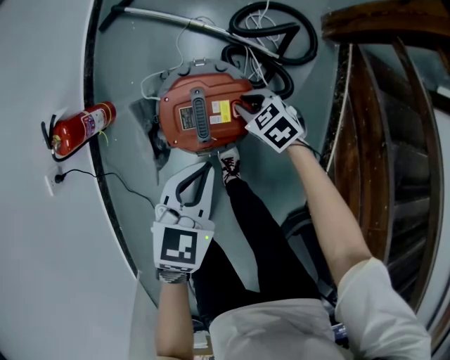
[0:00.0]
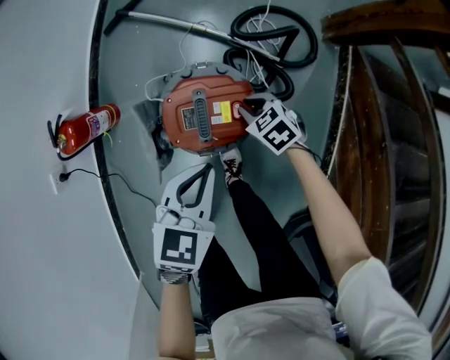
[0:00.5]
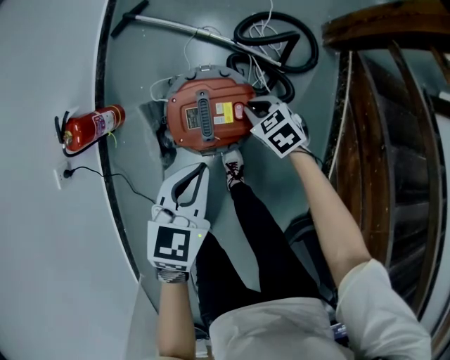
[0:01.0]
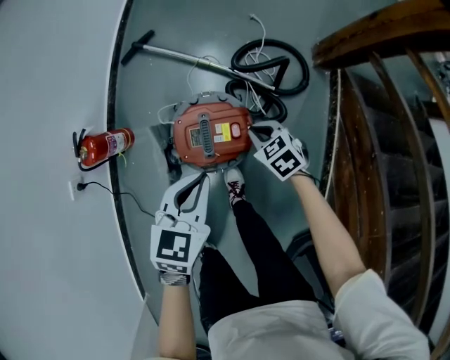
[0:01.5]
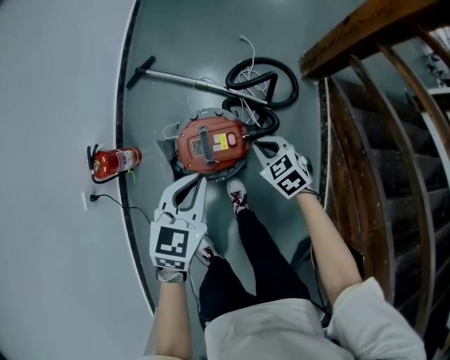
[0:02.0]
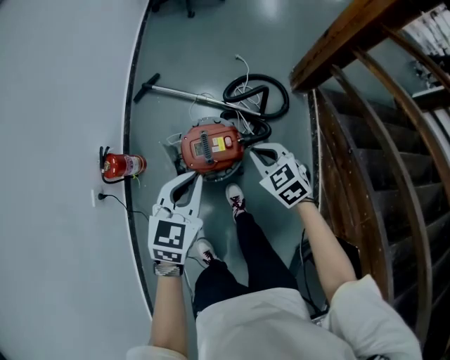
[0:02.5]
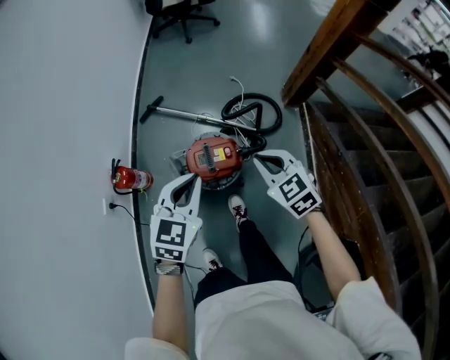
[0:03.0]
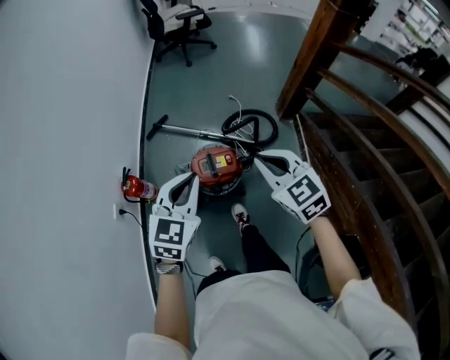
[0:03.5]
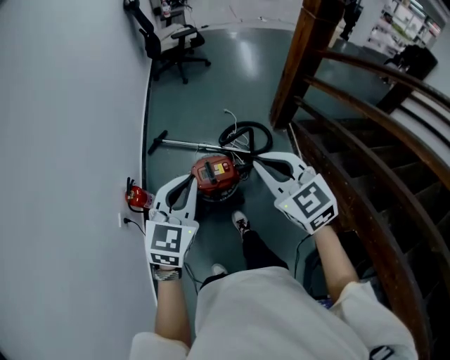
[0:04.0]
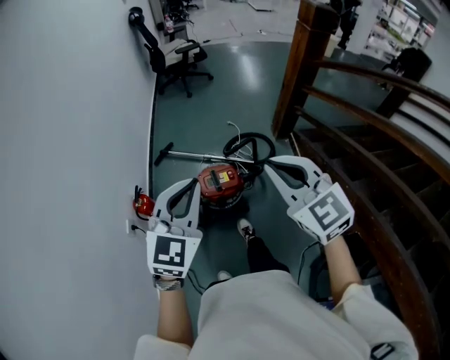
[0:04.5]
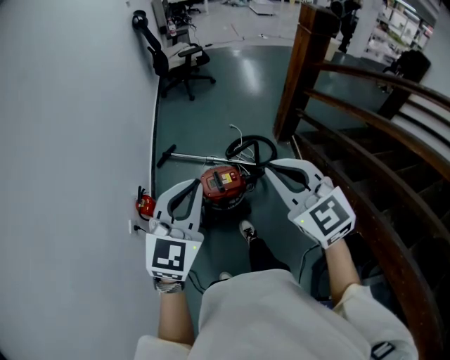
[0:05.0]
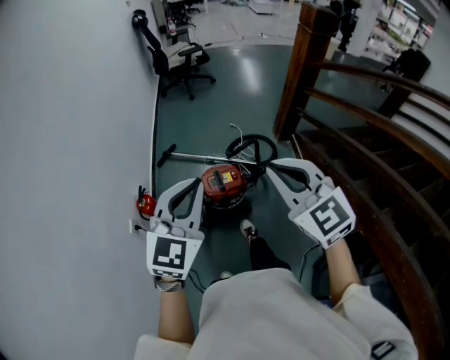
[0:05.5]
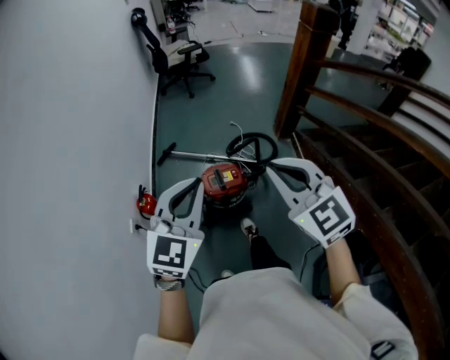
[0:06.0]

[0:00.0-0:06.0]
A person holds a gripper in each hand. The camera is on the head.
0:00.0 to 0:02.0: The two grippers go roughly 15 cm upward.
0:02.0 to 0:04.0: Both grippers travel together upward and backward, roughly 40 cm. The left gripper changes its angle by roughly 30 degrees; the right gripper tilts its fingers some 40 degrees upward.
0:04.0 to 0:06.0: The two grippers go some 10 cm upward and backward.

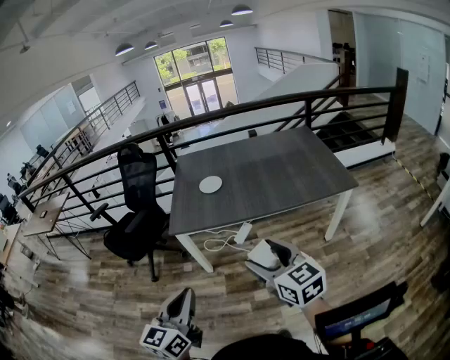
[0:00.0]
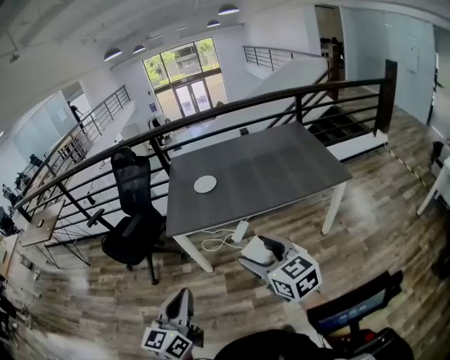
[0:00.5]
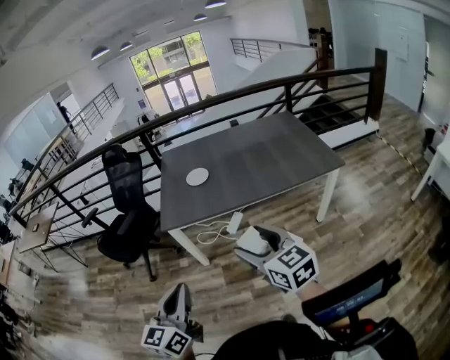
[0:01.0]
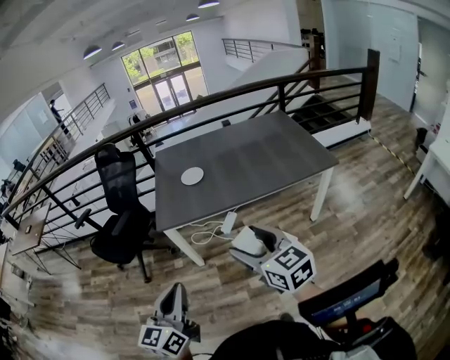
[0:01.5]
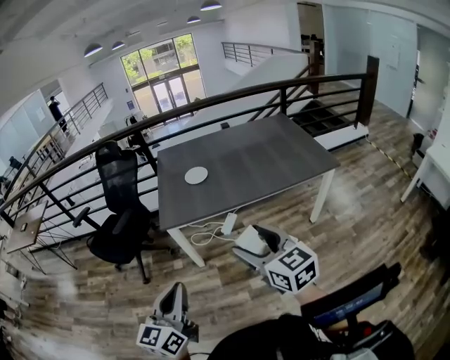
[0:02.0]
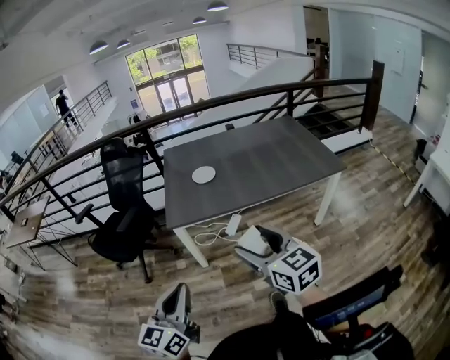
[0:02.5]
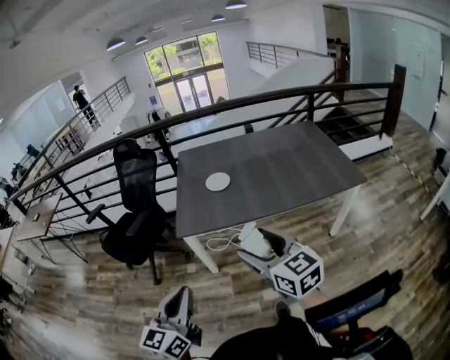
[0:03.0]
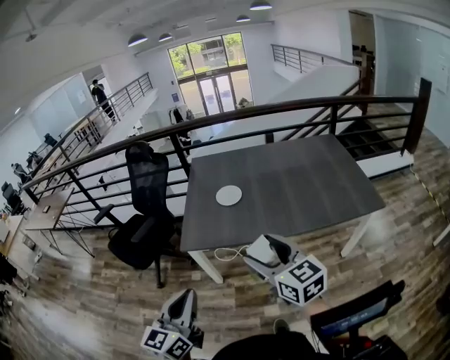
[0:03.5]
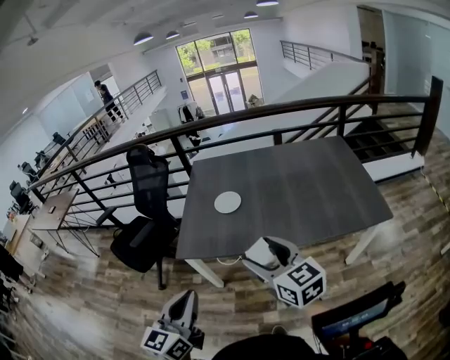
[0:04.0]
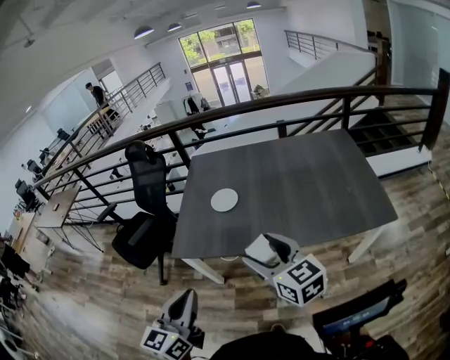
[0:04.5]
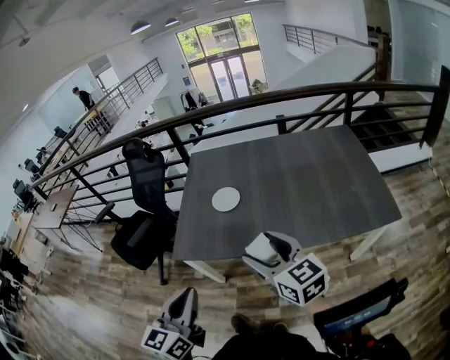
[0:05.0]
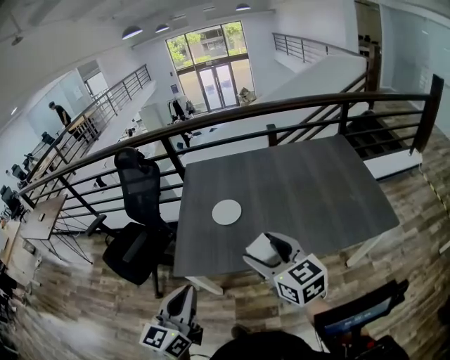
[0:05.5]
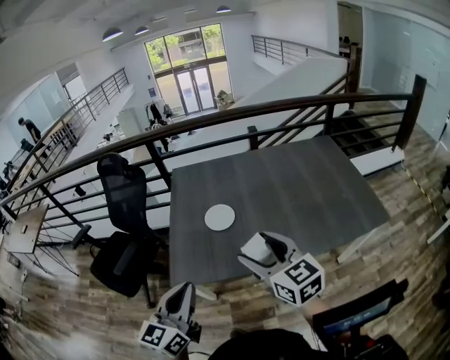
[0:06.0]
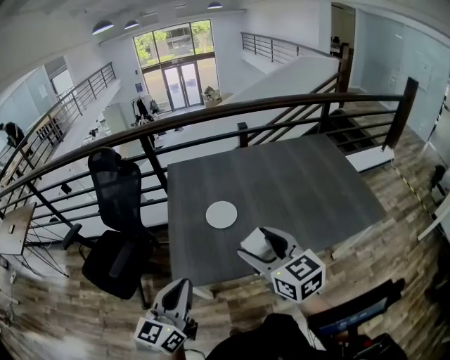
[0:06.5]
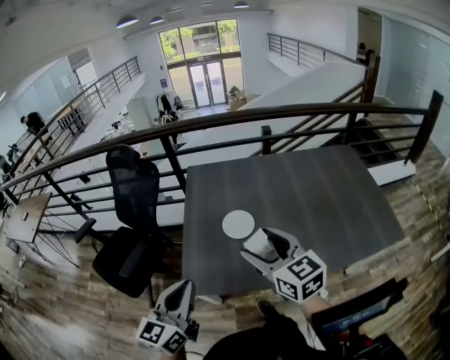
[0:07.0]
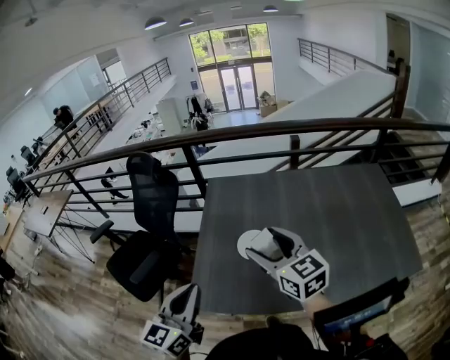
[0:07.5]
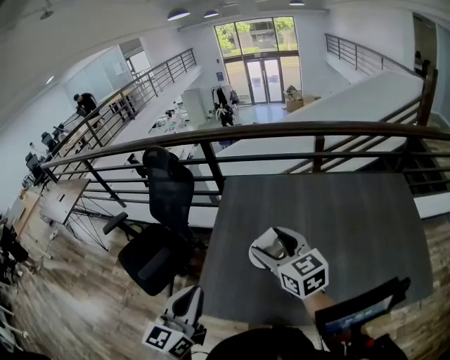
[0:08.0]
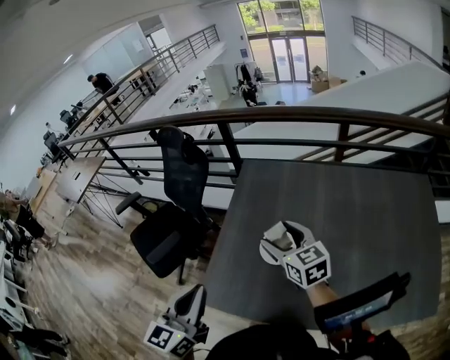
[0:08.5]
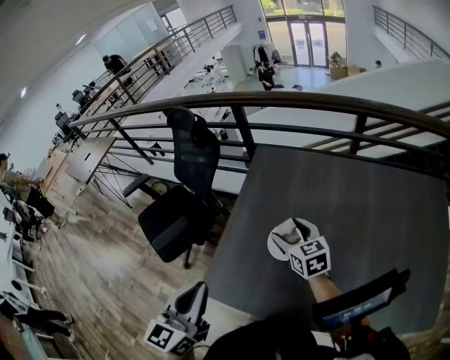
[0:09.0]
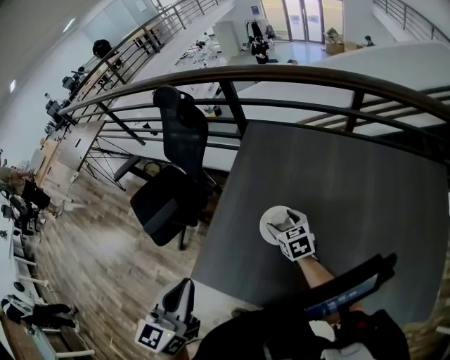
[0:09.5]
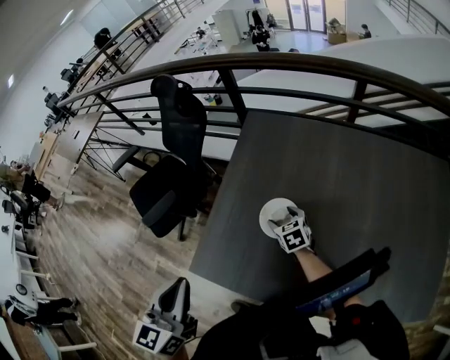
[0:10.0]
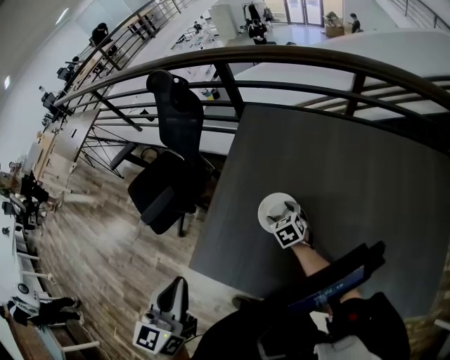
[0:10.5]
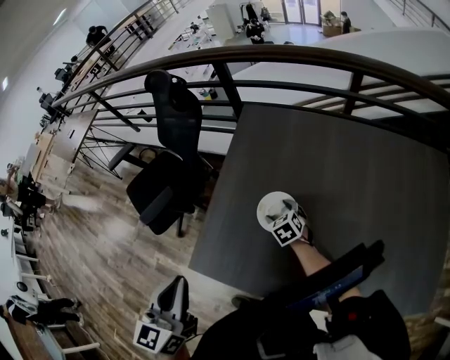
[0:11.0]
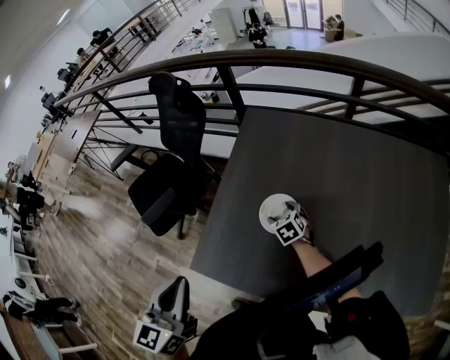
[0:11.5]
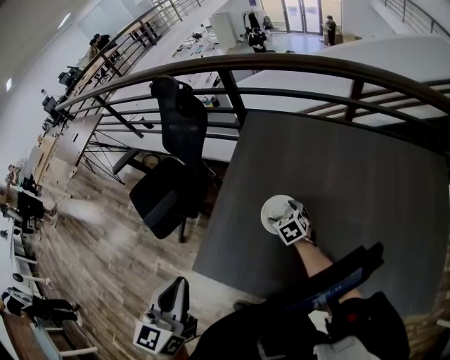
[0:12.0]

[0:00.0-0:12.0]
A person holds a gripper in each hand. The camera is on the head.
0:00.0 to 0:02.0: The grippers both shift to the left by roughly 10 cm.
0:02.0 to 0:04.0: The right gripper is displaced forward by some 25 cm, while the left gripper is displaced forward and to the right by roughly 25 cm.
0:04.0 to 0:06.0: Both grippers move forward, about 20 cm.
0:06.0 to 0:08.0: The left gripper is displaced forward by roughly 15 cm; the right gripper travels forward by about 25 cm.
0:08.0 to 0:10.0: The right gripper heads downward, covering some 30 cm, and tilts its fingers about 30 degrees downward.
0:10.0 to 0:12.0: There are only small adjustments of the grippers.

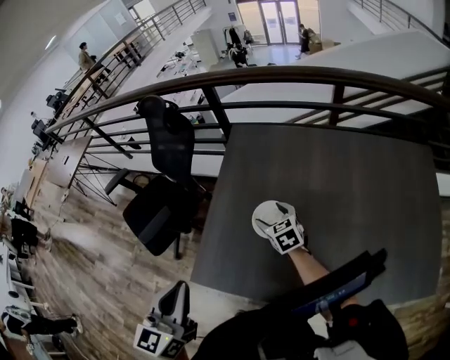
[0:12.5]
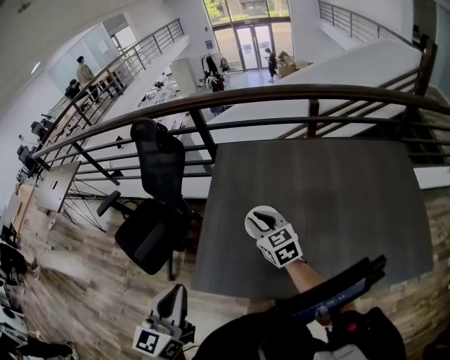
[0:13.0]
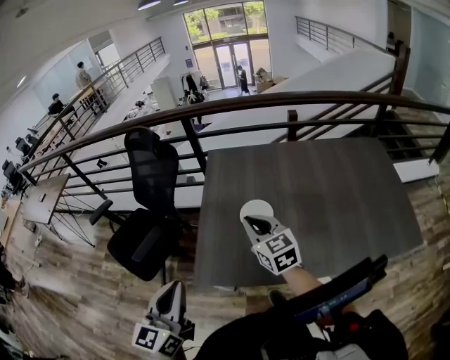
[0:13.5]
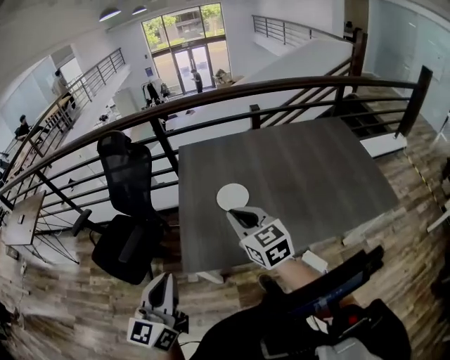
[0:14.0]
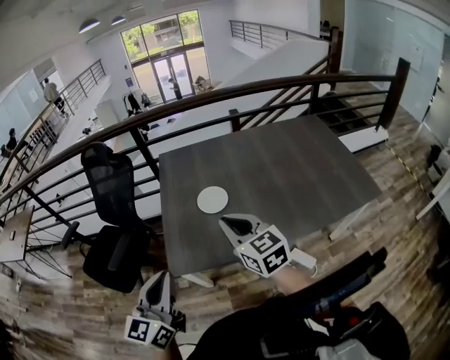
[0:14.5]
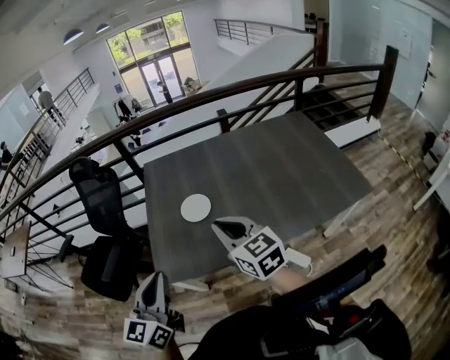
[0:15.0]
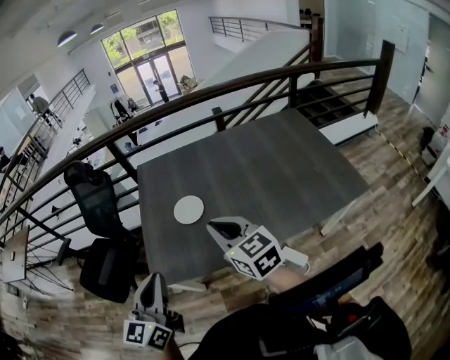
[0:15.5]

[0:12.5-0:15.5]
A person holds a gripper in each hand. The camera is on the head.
0:12.5 to 0:14.0: The left gripper goes some 20 cm backward and to the left, and rotates about 20 degrees; the right gripper moves backward and upward, about 30 cm, swivels about 30 degrees, and closes.
0:14.0 to 0:15.5: The grippers both shift to the right by roughly 15 cm.

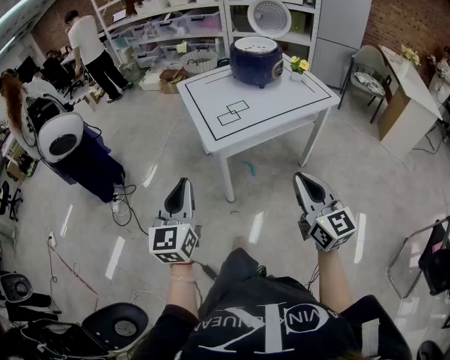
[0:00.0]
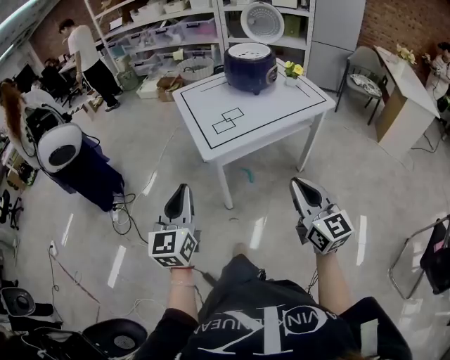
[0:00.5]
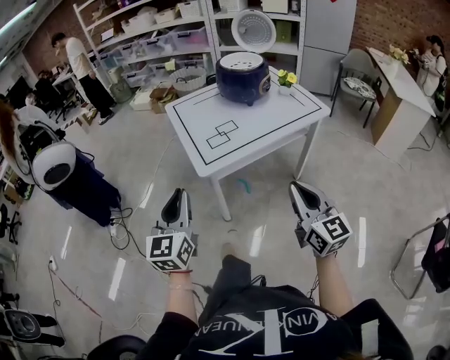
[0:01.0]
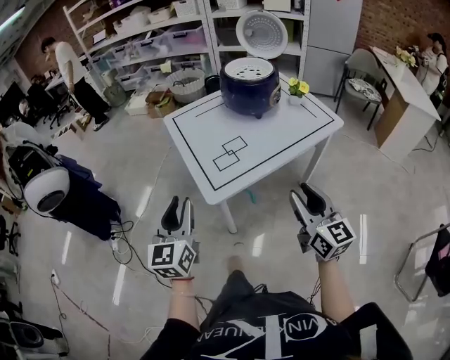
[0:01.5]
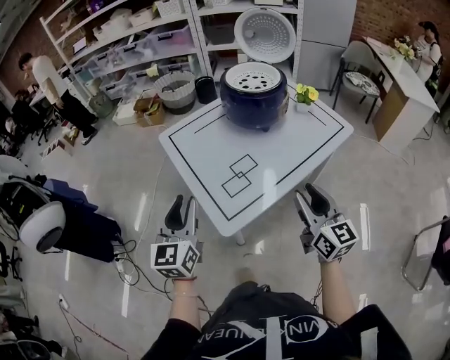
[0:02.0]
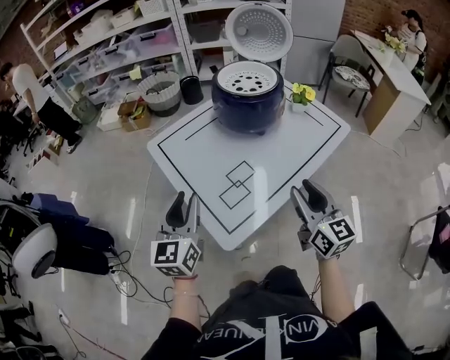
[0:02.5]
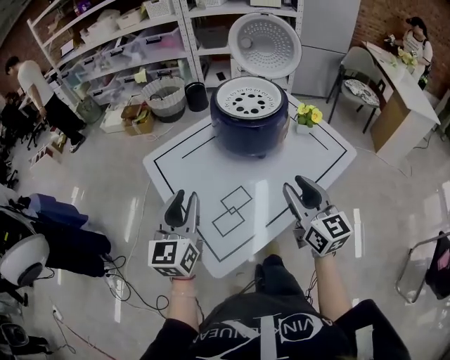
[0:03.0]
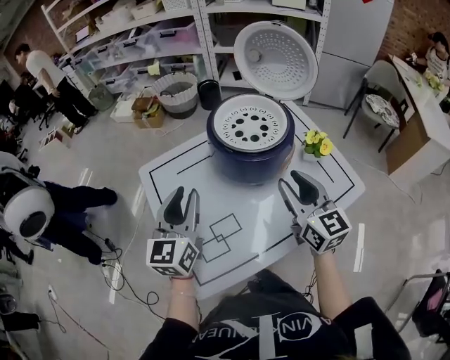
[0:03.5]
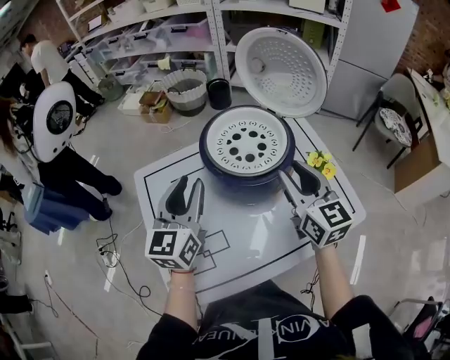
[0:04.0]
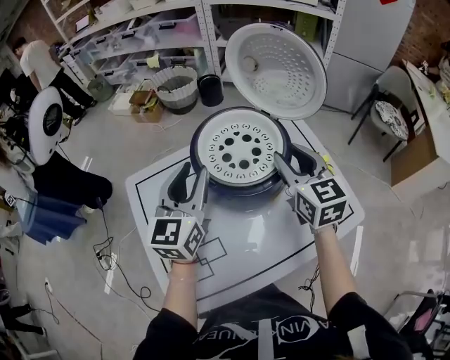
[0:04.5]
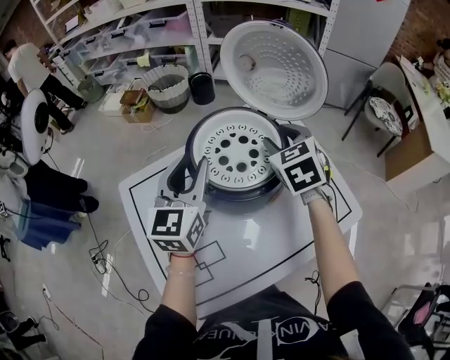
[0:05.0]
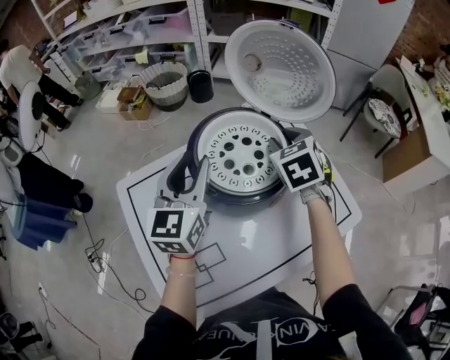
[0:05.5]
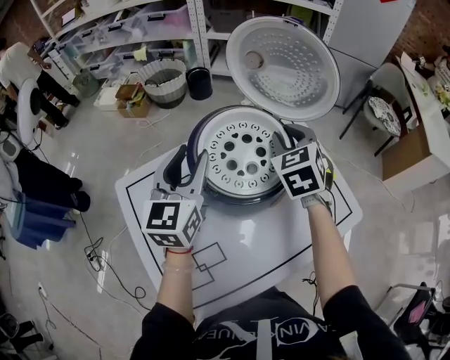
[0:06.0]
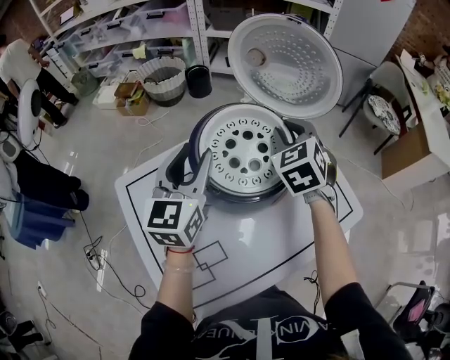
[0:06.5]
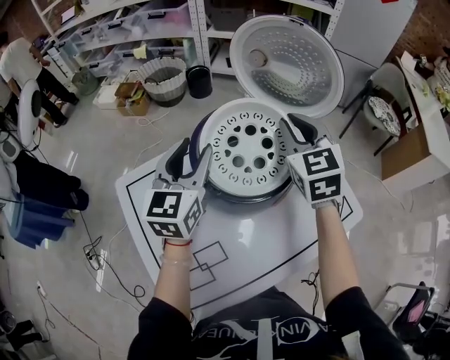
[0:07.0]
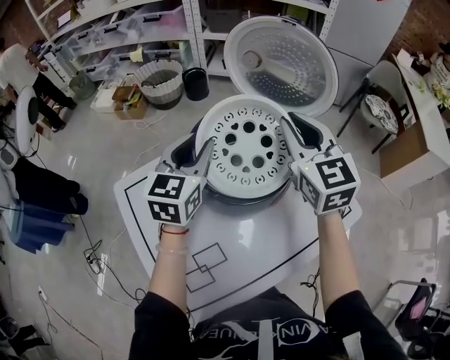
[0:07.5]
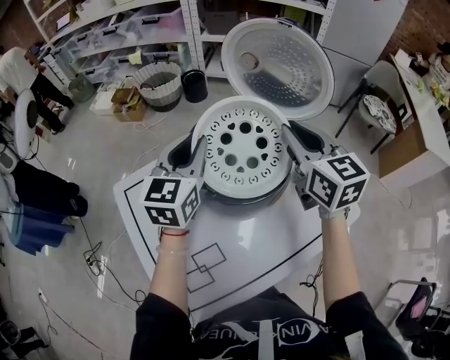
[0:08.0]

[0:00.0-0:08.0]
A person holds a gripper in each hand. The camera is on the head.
0:00.0 to 0:02.0: Both grippers move forward, some 30 cm. The right gripper opens its fingers.
0:02.0 to 0:04.0: The left gripper goes about 35 cm forward and to the right; the right gripper travels forward by approximately 40 cm.
0:04.0 to 0:06.0: Both grippers travel together forward, some 15 cm. The right gripper changes its angle by some 40 degrees.
0:06.0 to 0:08.0: The right gripper heads upward, covering approximately 5 cm, and rotates roughly 40 degrees.
